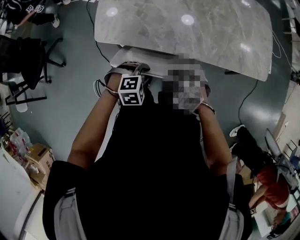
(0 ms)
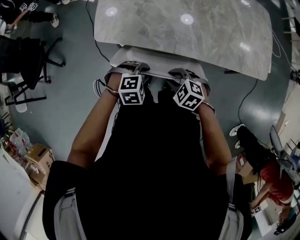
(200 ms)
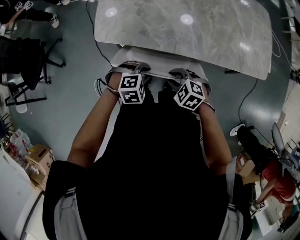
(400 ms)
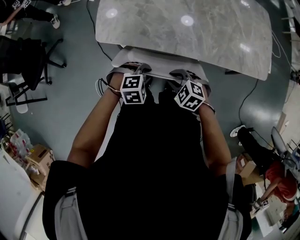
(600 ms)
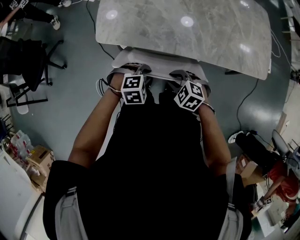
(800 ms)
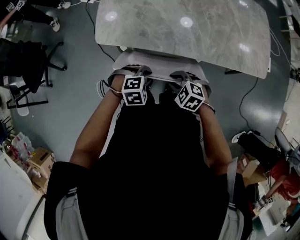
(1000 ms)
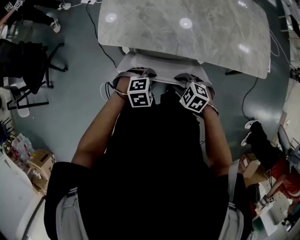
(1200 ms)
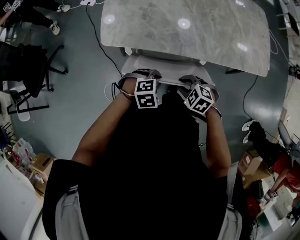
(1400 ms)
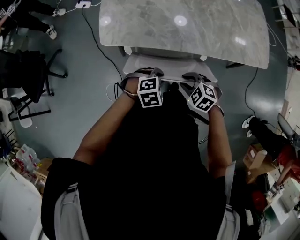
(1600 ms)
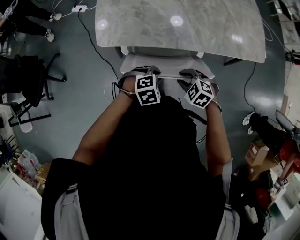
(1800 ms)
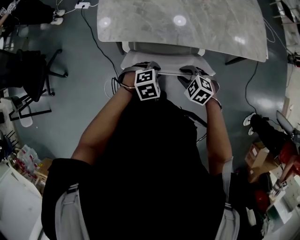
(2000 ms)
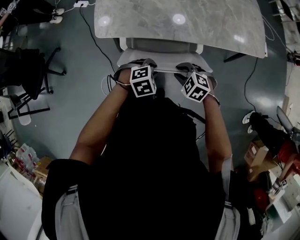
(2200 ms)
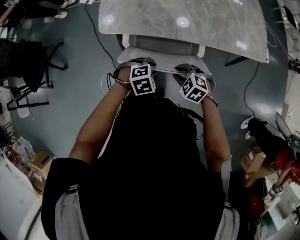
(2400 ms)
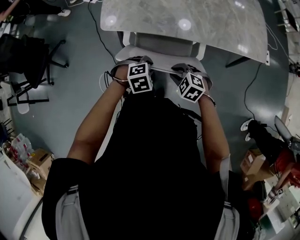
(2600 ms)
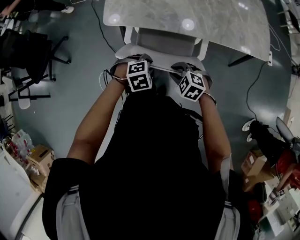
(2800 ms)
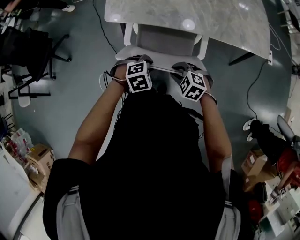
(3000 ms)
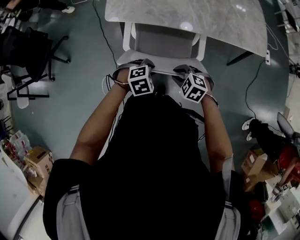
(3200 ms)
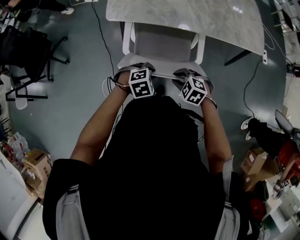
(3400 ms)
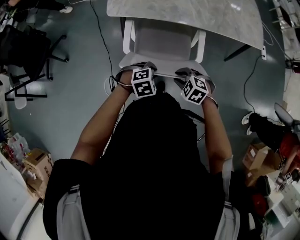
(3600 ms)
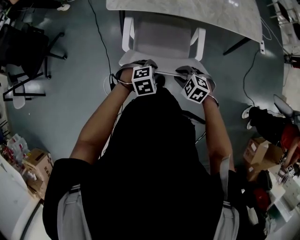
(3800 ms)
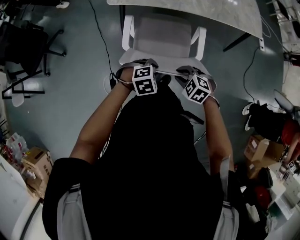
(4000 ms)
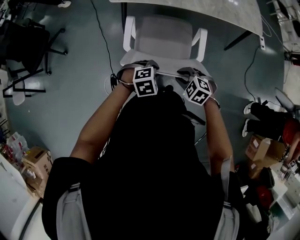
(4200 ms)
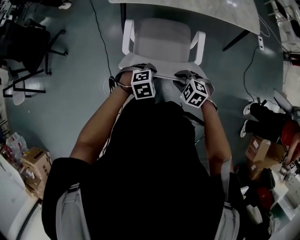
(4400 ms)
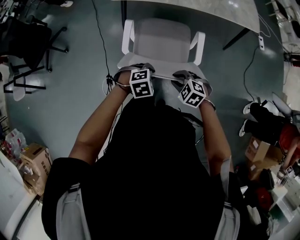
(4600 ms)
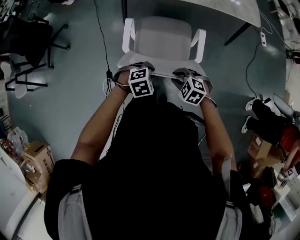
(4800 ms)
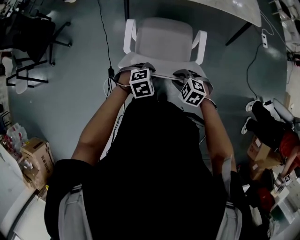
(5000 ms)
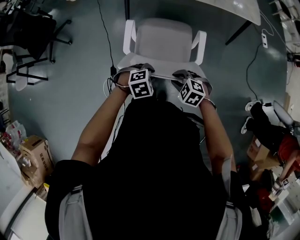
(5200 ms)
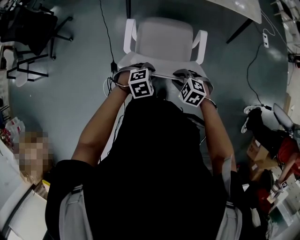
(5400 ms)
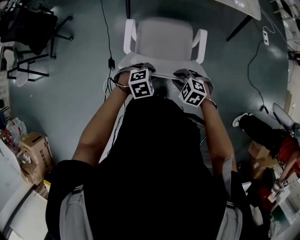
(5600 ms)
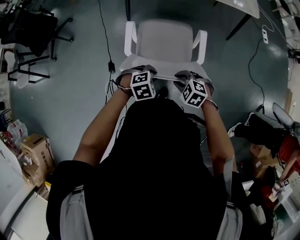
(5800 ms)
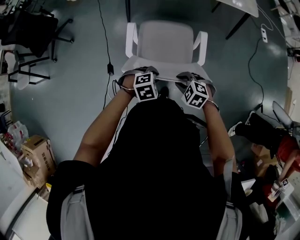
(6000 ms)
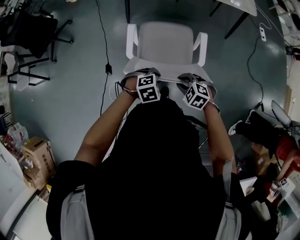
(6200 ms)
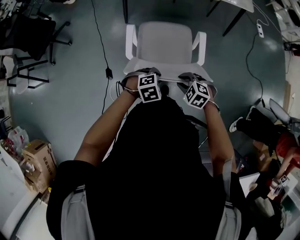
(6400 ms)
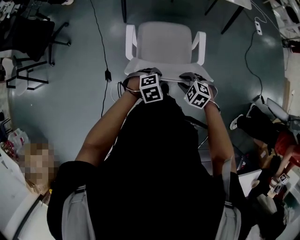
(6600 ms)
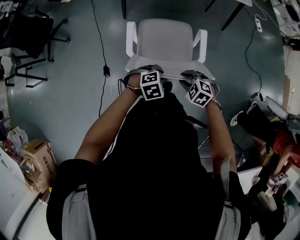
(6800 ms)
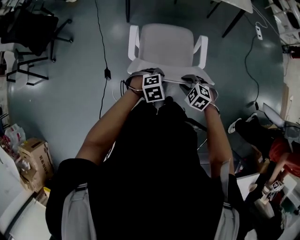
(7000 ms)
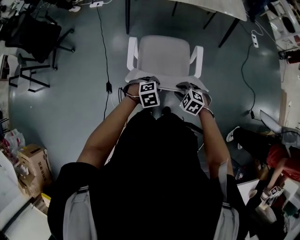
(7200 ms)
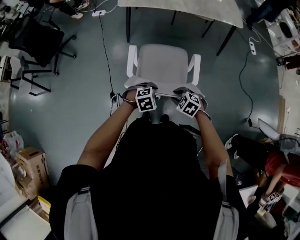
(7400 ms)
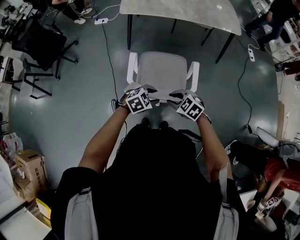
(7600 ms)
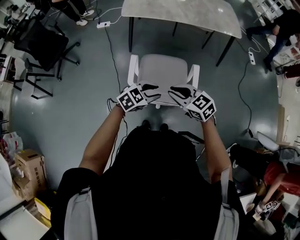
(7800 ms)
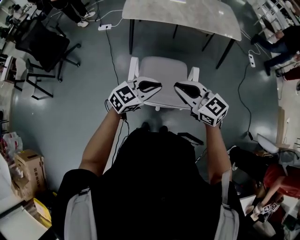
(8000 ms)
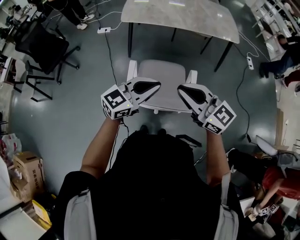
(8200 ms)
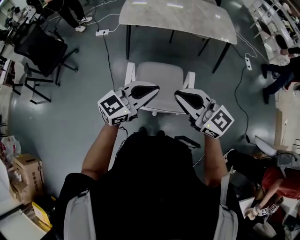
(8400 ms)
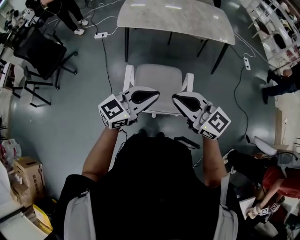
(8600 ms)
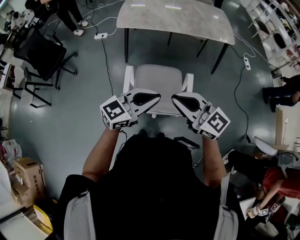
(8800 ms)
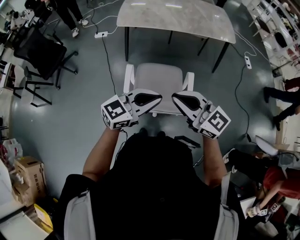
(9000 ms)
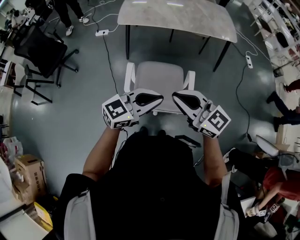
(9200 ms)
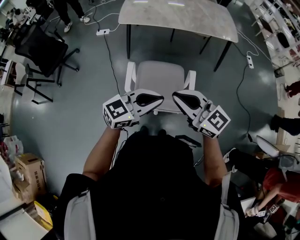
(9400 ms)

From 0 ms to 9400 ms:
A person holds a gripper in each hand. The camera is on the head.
From 0 ms to 1600 ms: The grippers stay close to where they were, moving slightly.
From 1600 ms to 3200 ms: The left gripper ends up some 15 cm from where it was. Meanwhile the right gripper shifts by some 15 cm.
From 3200 ms to 4800 ms: The right gripper changes place by some 25 cm. Meanwhile the left gripper shifts by about 25 cm.
From 4800 ms to 6200 ms: The right gripper shifts by approximately 15 cm; the left gripper changes place by about 15 cm.
From 6200 ms to 7800 ms: Both grippers move upward, approximately 15 cm. The left gripper changes its angle by about 30 degrees, while the right gripper tips its fingers upward by roughly 30 degrees.
From 7800 ms to 9400 ms: Both grippers move upward, roughly 15 cm. The right gripper changes its angle by about 30 degrees; the left gripper tips its fingers upward by about 30 degrees, and closes its fingers.

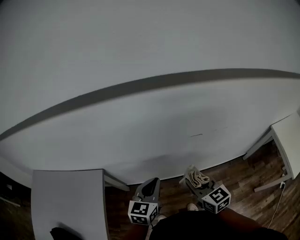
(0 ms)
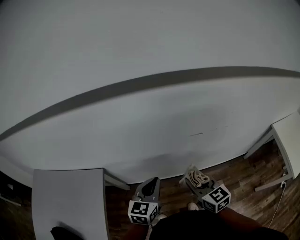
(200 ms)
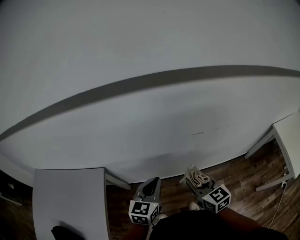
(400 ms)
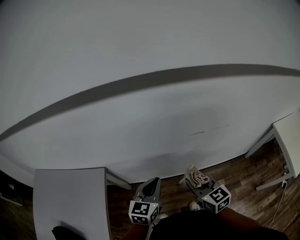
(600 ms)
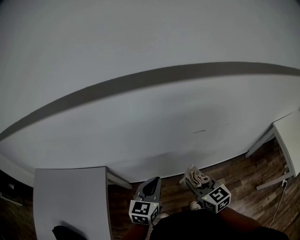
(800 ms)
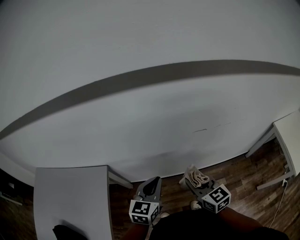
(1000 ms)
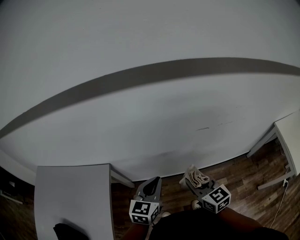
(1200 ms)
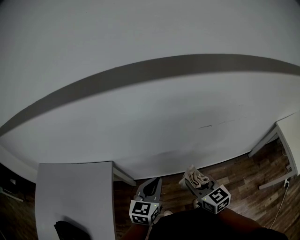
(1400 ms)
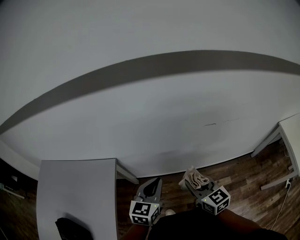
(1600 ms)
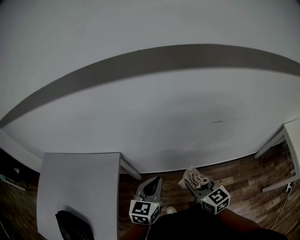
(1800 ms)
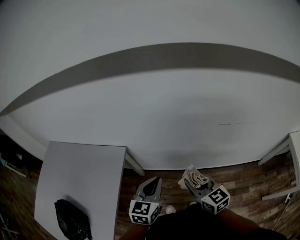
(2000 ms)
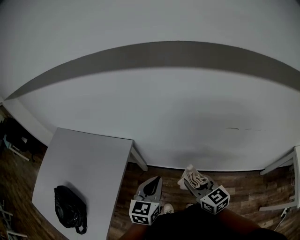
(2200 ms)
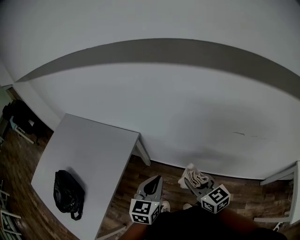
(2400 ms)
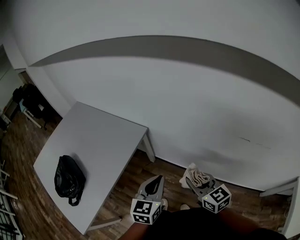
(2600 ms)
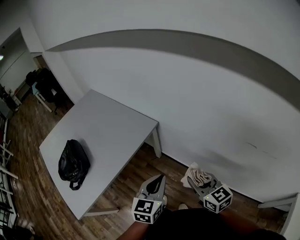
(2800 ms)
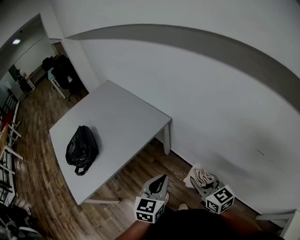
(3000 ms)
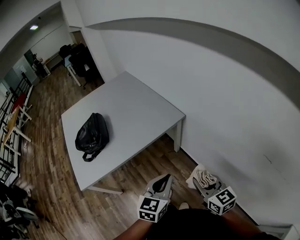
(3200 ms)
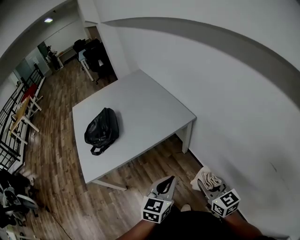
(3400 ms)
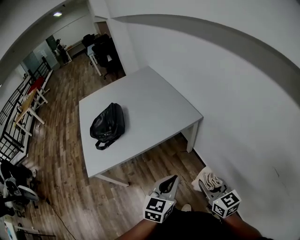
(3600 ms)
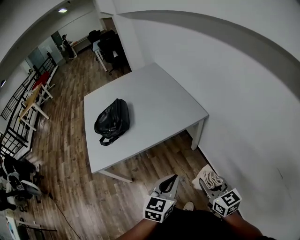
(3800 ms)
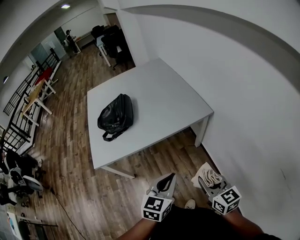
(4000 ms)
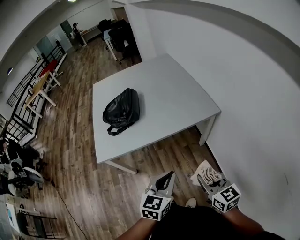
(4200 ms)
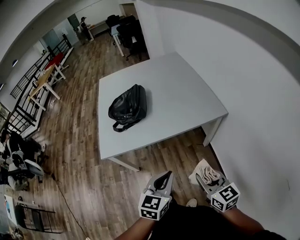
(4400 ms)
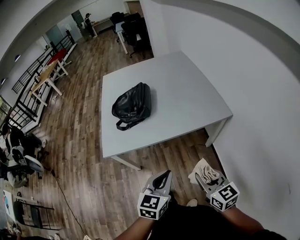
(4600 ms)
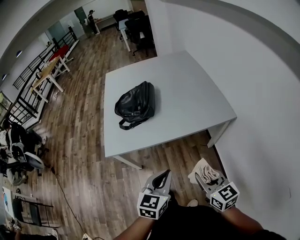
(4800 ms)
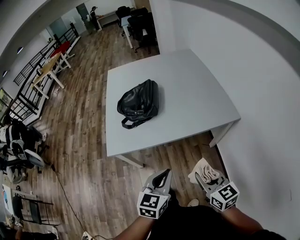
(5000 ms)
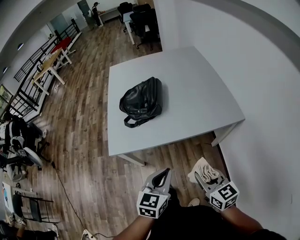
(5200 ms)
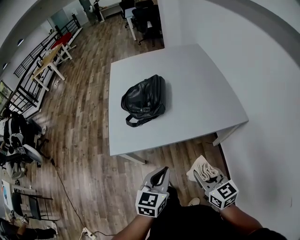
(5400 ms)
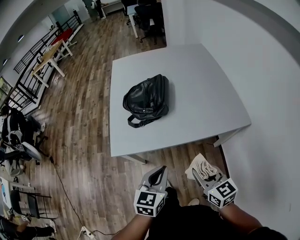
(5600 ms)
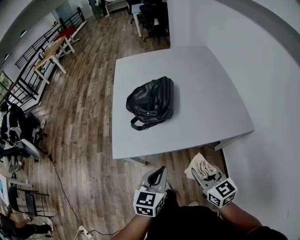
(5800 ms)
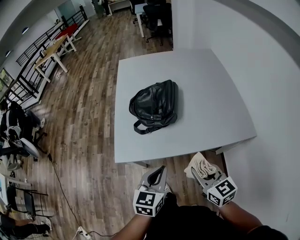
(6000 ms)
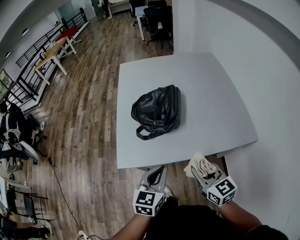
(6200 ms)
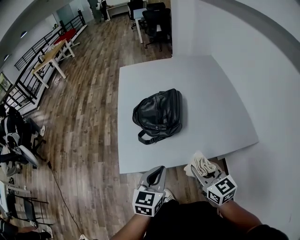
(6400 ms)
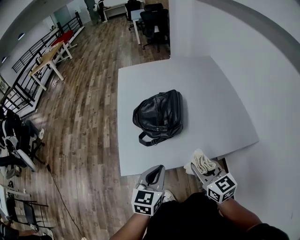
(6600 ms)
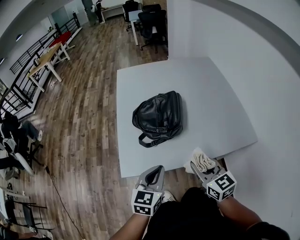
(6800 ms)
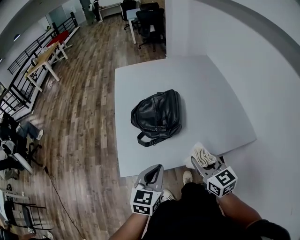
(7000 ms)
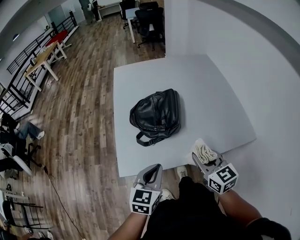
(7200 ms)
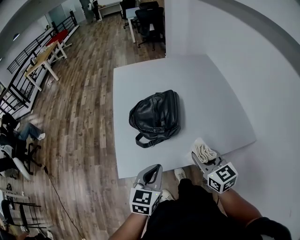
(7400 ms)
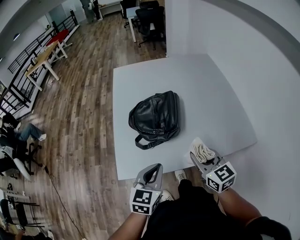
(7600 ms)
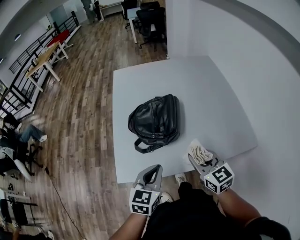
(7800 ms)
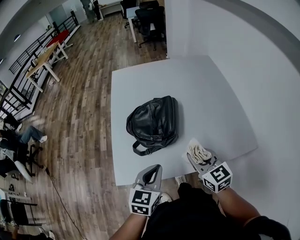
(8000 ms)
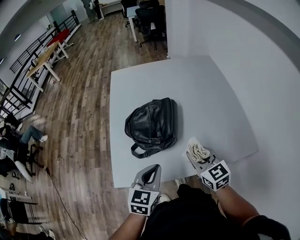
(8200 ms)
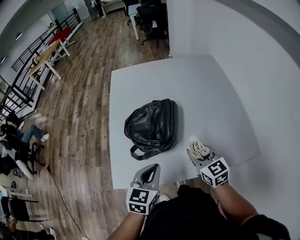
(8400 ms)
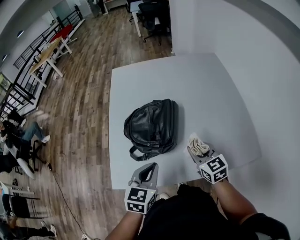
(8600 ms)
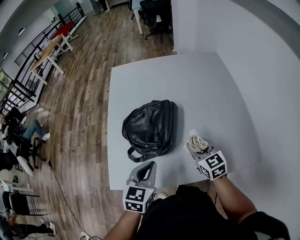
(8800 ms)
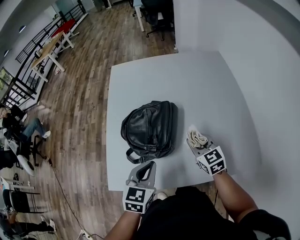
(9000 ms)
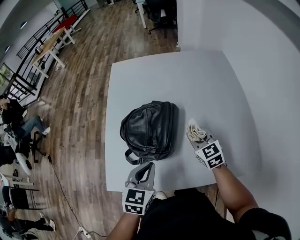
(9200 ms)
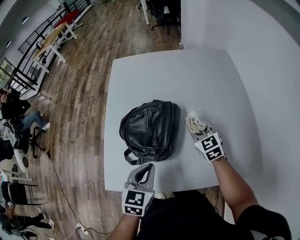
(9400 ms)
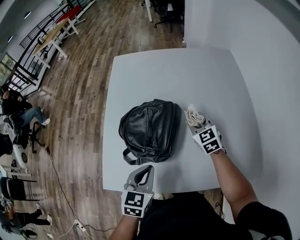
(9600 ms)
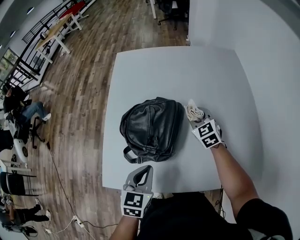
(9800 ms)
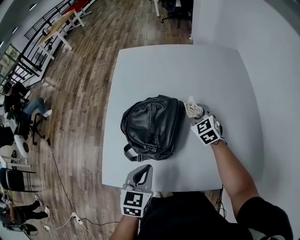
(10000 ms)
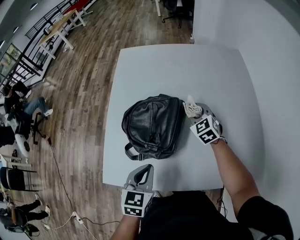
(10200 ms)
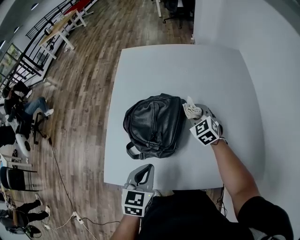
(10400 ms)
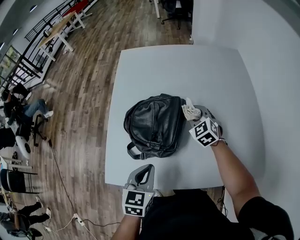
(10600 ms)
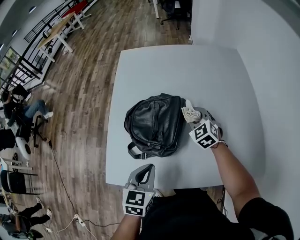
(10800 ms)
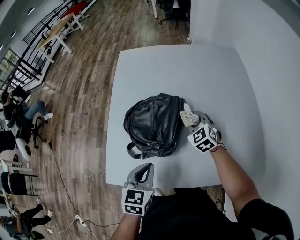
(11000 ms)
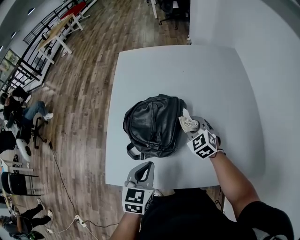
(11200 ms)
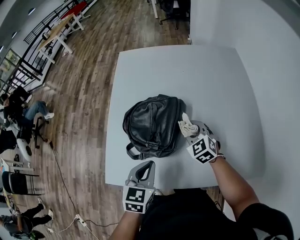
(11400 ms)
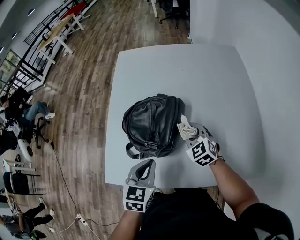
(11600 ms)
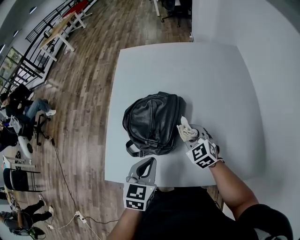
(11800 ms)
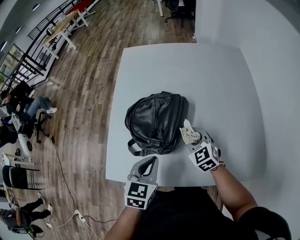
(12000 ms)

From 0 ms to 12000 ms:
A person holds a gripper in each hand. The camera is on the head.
From 0 ms to 1600 ms: The left gripper moves to the left and backward, roughly 10 cm, while the right gripper goes some 10 cm to the left.
From 1600 ms to 3000 ms: The right gripper changes place by approximately 10 cm, and turns by some 50 degrees. Meanwhile the left gripper shifts by approximately 15 cm, and rotates roughly 50 degrees.
From 3000 ms to 4400 ms: The right gripper shifts by approximately 15 cm, and turns by approximately 30 degrees; the left gripper shifts by roughly 15 cm, and turns by about 30 degrees.
From 4400 ms to 6000 ms: The two grippers go about 25 cm forward and to the left.
From 6000 ms to 7600 ms: Both grippers move forward, roughly 10 cm.
From 7600 ms to 9000 ms: The right gripper moves forward and downward, some 20 cm. The left gripper shifts some 15 cm forward and to the right.
From 9000 ms to 10400 ms: The right gripper travels forward by approximately 15 cm, and turns by about 30 degrees. The left gripper ends up some 5 cm from where it was.
From 10400 ms to 12000 ms: The right gripper travels backward by approximately 10 cm.

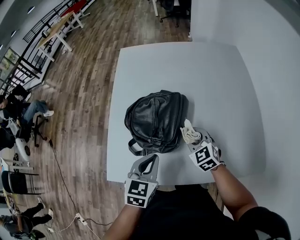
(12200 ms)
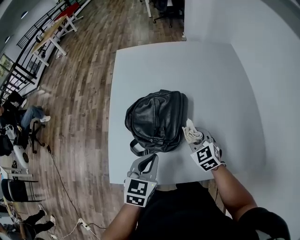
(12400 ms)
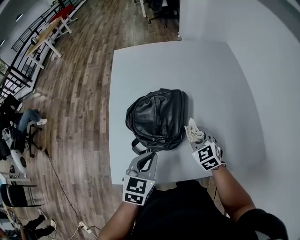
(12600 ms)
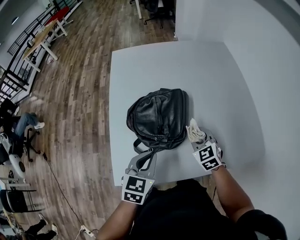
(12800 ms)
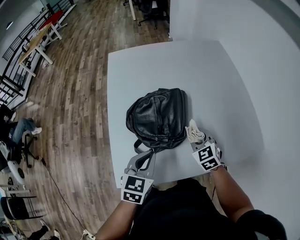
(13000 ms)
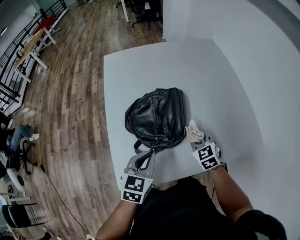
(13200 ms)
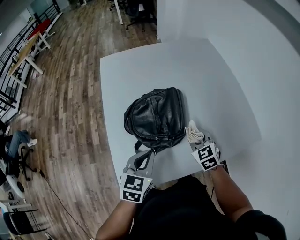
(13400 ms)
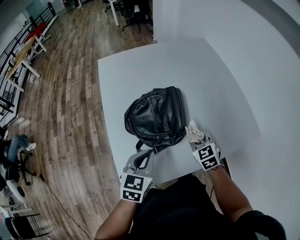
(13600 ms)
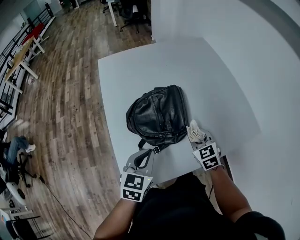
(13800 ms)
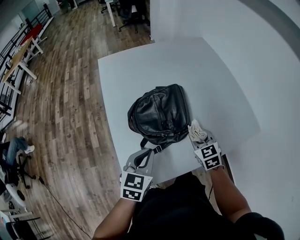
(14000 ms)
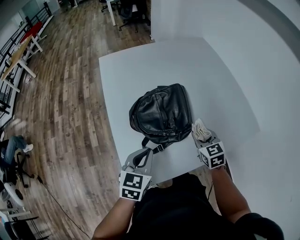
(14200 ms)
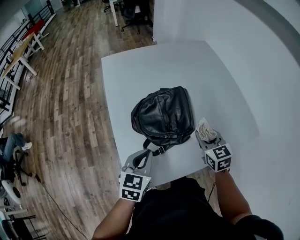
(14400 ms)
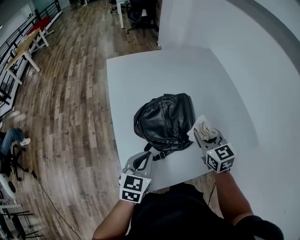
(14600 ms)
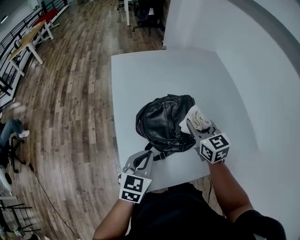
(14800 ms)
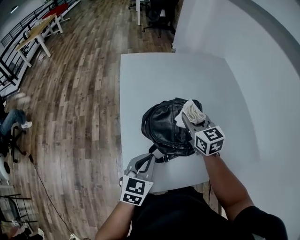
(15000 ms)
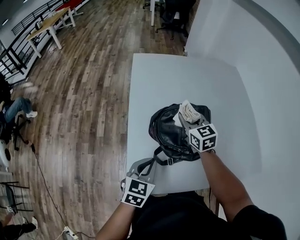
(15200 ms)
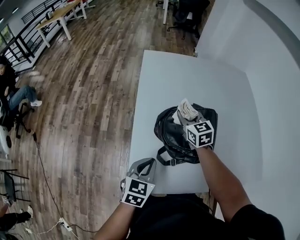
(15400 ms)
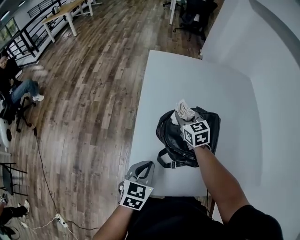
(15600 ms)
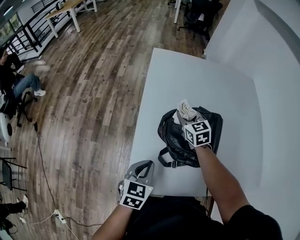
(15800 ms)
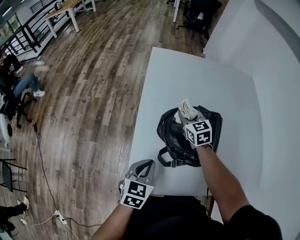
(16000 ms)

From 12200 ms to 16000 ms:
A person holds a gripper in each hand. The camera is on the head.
From 12200 ms to 13400 ms: The left gripper is displaced to the left by roughly 10 cm. Meanwhile the right gripper travels backward by approximately 5 cm, and turns by some 20 degrees.
From 13400 ms to 14800 ms: The left gripper moves to the left, about 10 cm; the right gripper heads upward and to the left, covering roughly 15 cm, and rotates about 20 degrees.
From 14800 ms to 16000 ms: The right gripper travels to the left, forward and downward by some 20 cm; the left gripper travels downward and to the left by some 10 cm.
